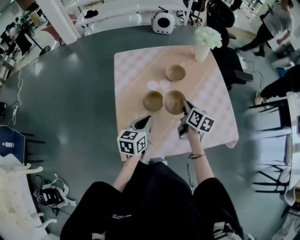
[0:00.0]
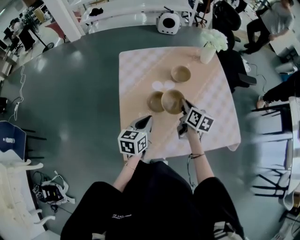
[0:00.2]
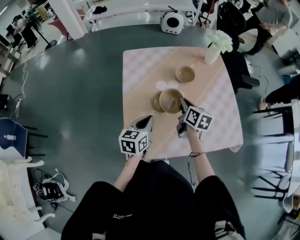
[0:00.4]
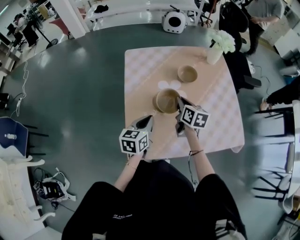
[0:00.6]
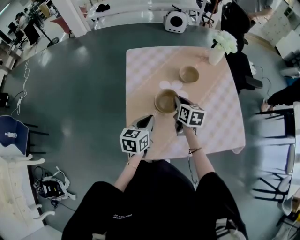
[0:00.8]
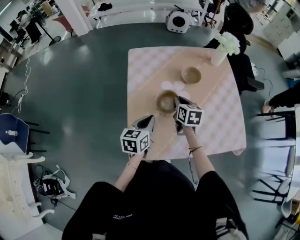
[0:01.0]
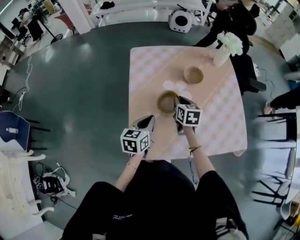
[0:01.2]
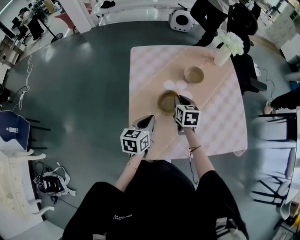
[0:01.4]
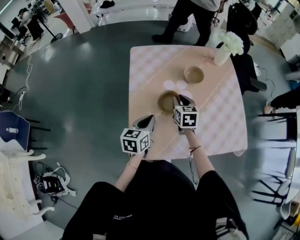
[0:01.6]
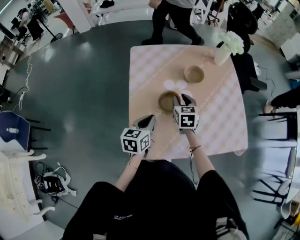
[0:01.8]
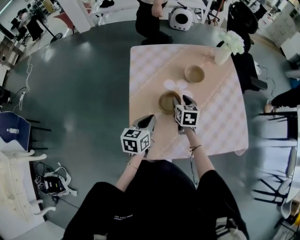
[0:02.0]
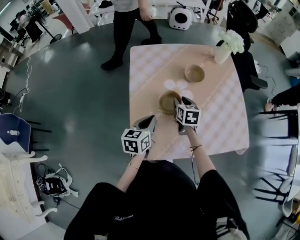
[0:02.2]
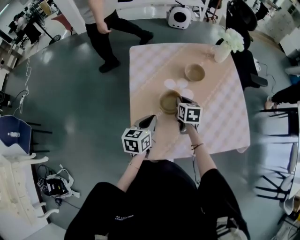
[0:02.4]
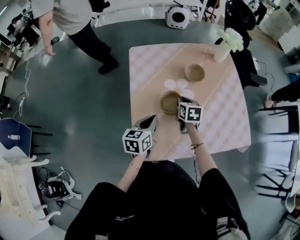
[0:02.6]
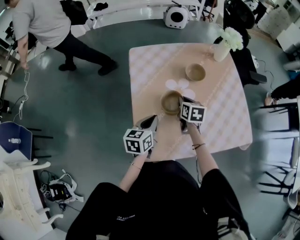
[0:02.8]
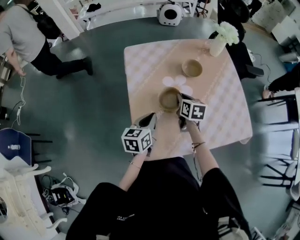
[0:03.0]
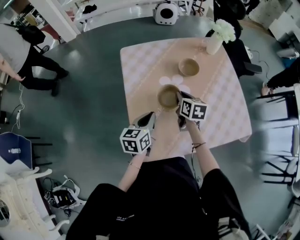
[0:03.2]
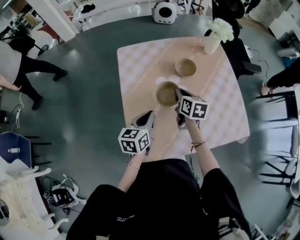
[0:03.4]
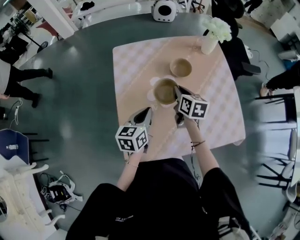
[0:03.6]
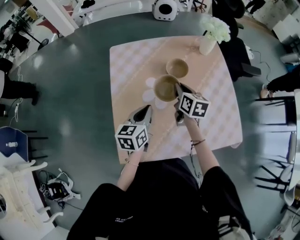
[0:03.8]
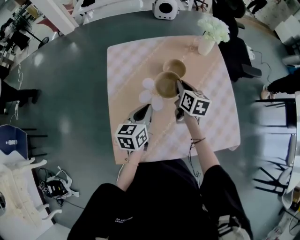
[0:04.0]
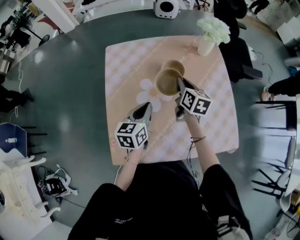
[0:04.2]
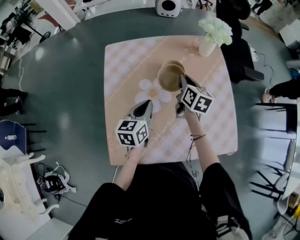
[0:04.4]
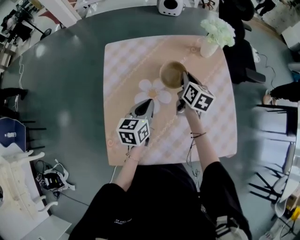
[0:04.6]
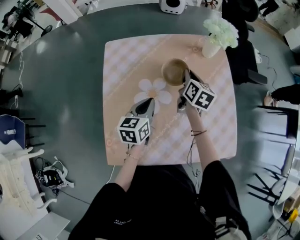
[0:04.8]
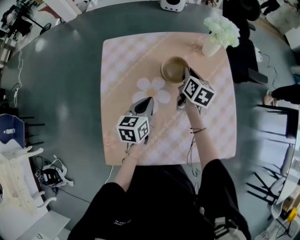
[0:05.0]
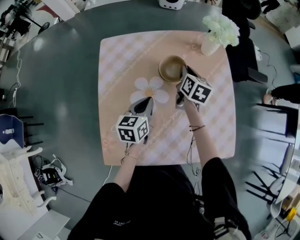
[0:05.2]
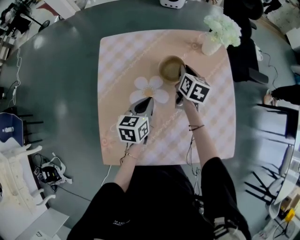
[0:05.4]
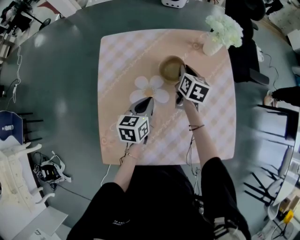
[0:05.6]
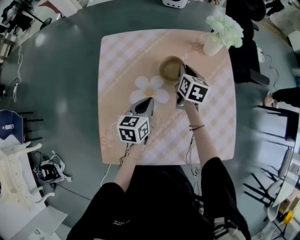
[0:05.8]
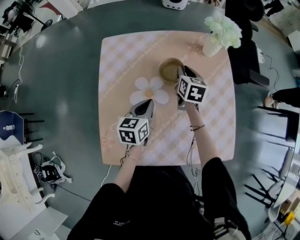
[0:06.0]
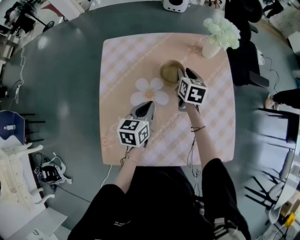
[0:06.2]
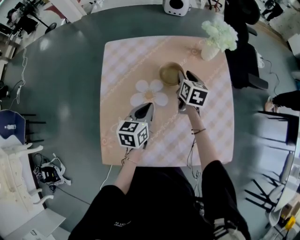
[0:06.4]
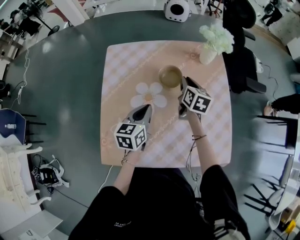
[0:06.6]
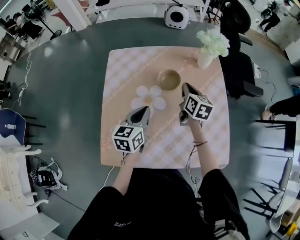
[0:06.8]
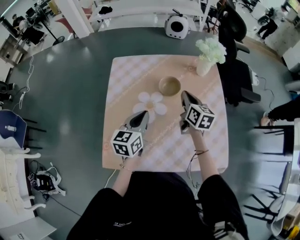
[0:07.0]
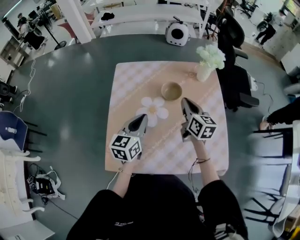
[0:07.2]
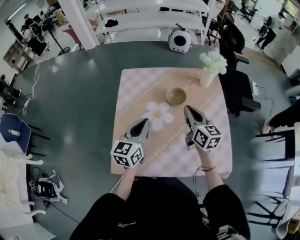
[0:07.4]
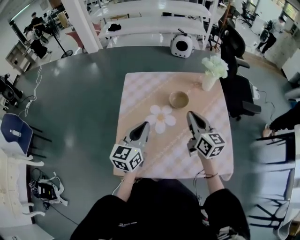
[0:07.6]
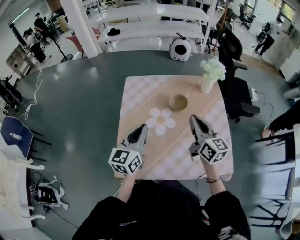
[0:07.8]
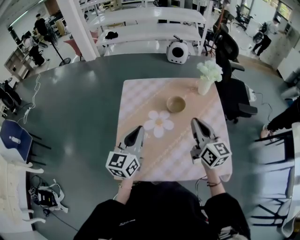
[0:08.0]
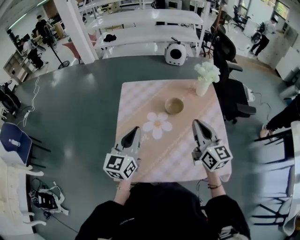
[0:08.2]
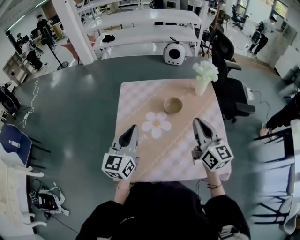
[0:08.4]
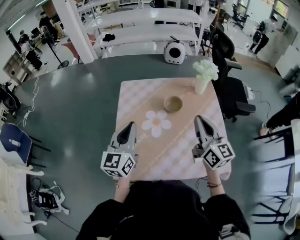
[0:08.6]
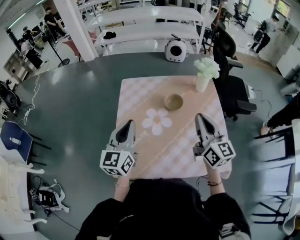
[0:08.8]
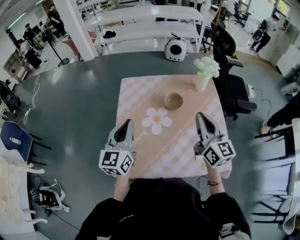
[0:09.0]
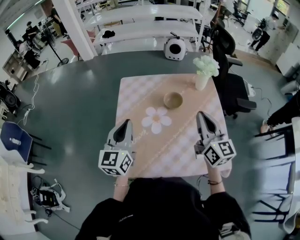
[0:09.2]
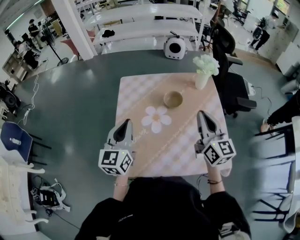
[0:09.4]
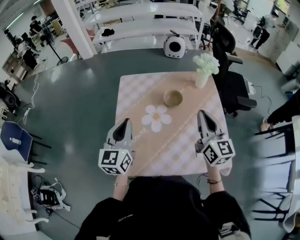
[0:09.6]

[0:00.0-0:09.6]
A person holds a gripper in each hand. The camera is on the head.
0:00.0 to 0:01.6: The left gripper travels to the left by about 5 cm. The right gripper goes about 15 cm to the left and downward, and rotates roughly 30 degrees.
0:01.6 to 0:03.2: The right gripper opens, then closes once more.
0:03.2 to 0:04.8: The two grippers go approximately 20 cm forward and to the right.
0:04.8 to 0:06.4: The right gripper opens.
0:06.4 to 0:08.0: The right gripper heads upward and backward, covering some 30 cm, points its fingers approximately 30 degrees further upward, and closes its fingers. The left gripper shifts approximately 20 cm upward, to the left and backward, and changes its angle by some 30 degrees.
0:08.0 to 0:09.6: There are only small adjustments of the grippers.

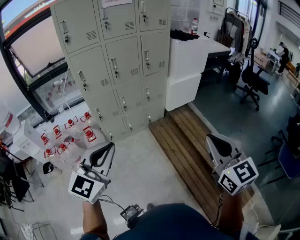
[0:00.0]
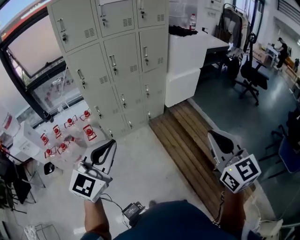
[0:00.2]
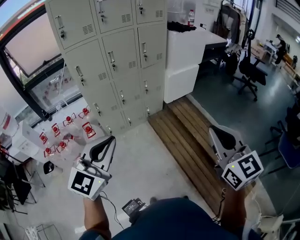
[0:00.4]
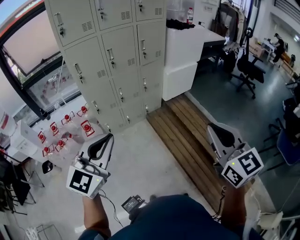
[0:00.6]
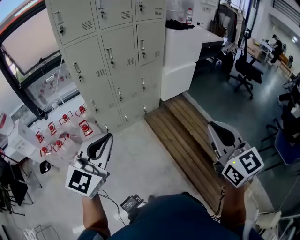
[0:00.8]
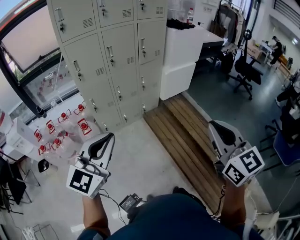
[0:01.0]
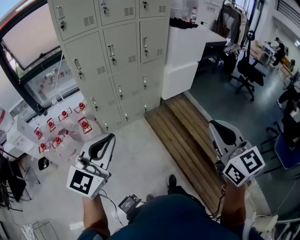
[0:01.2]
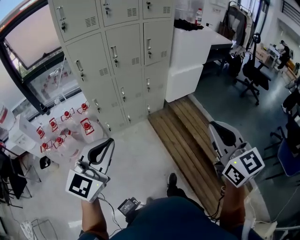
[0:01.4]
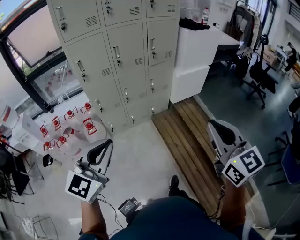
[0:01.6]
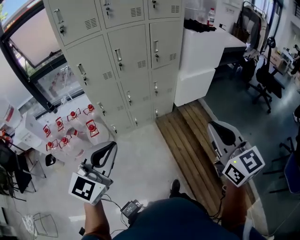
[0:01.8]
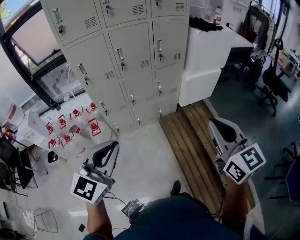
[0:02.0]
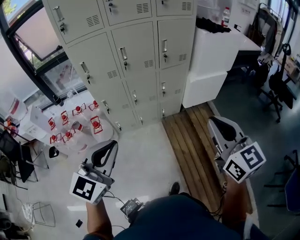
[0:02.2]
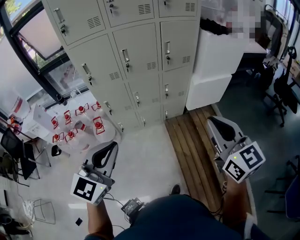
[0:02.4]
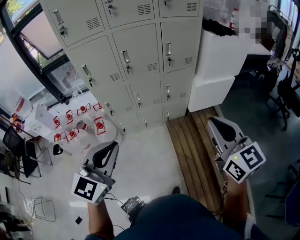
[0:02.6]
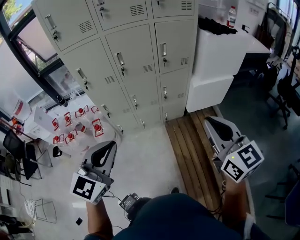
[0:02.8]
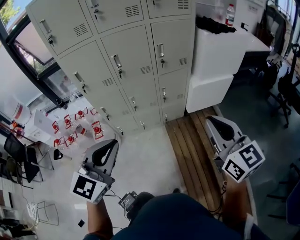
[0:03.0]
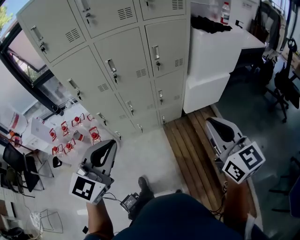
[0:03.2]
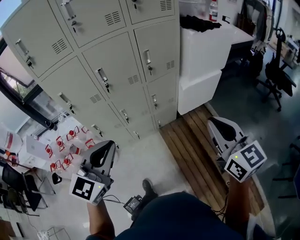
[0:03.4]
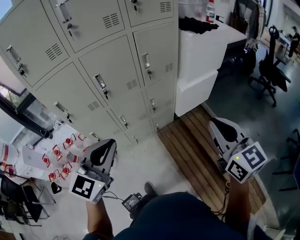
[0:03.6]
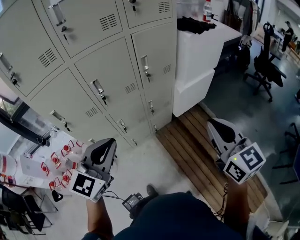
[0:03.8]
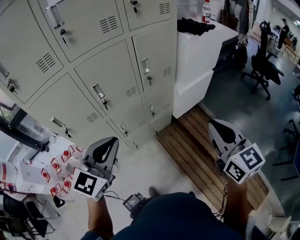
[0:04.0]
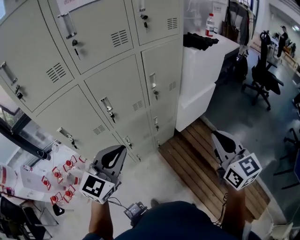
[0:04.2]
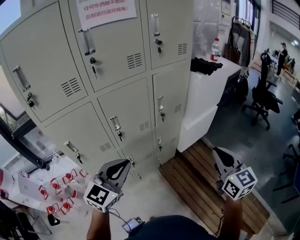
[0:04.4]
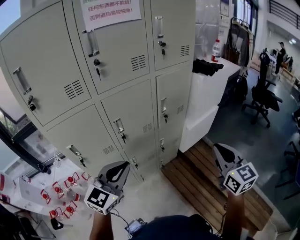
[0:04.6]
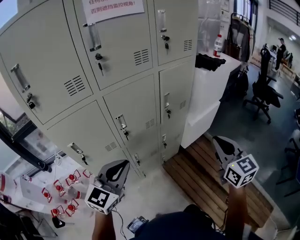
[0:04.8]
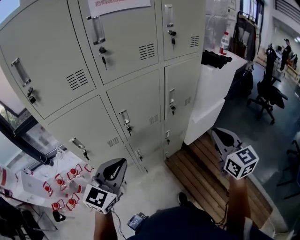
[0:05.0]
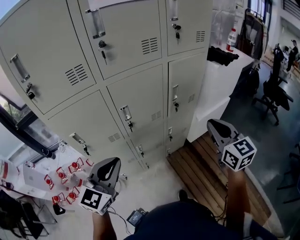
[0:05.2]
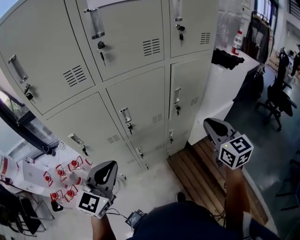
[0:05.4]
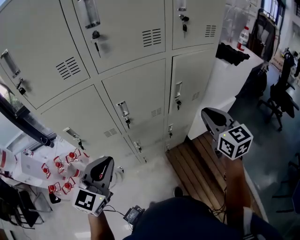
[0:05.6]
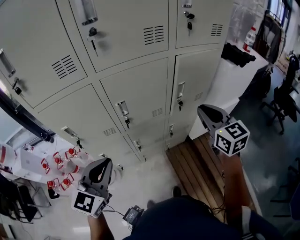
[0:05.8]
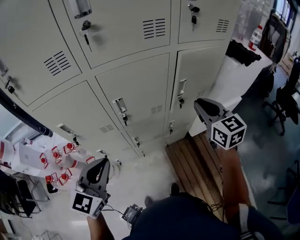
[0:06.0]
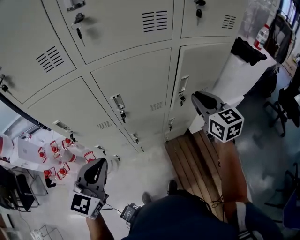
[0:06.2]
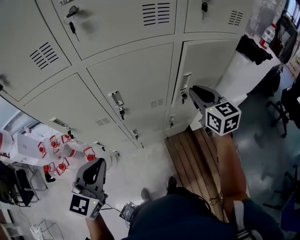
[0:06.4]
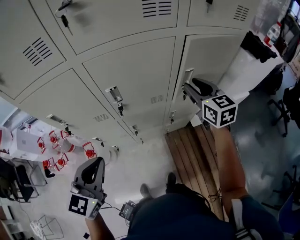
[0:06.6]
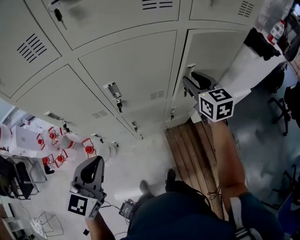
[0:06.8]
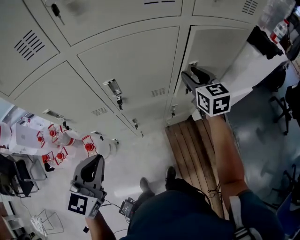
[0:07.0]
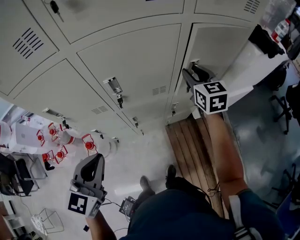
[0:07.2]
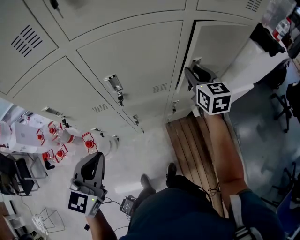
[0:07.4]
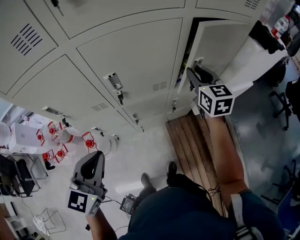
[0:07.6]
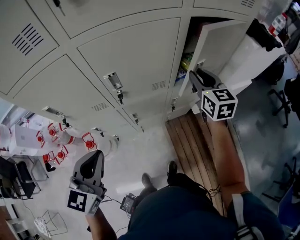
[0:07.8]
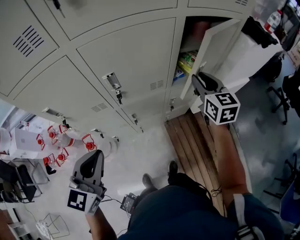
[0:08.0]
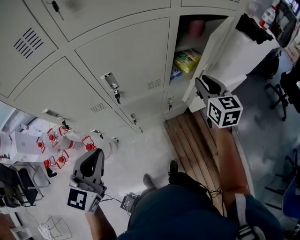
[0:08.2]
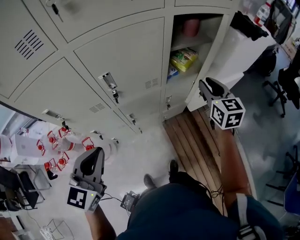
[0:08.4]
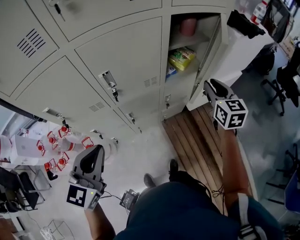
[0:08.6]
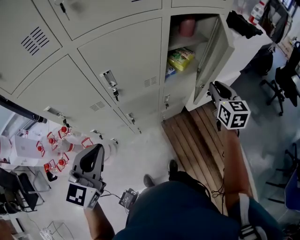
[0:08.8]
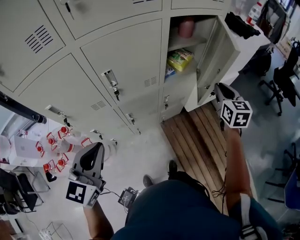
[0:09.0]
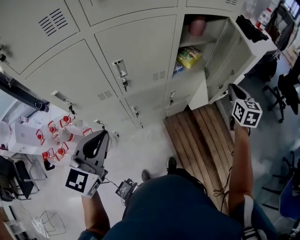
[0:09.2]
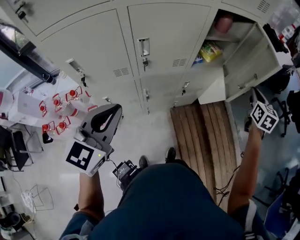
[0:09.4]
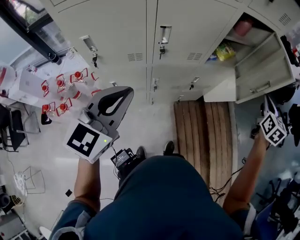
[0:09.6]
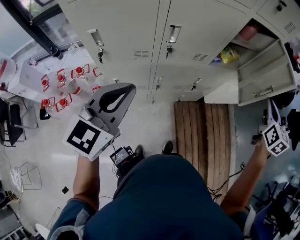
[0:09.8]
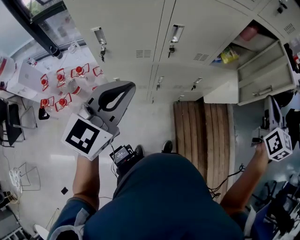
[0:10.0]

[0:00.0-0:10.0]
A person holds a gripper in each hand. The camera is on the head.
0:00.0 to 0:01.4: The right gripper moves about 5 cm.
0:01.4 to 0:02.8: The right gripper is displaced forward by about 30 cm. Meanwhile the left gripper goes some 25 cm forward and to the right.
0:02.8 to 0:04.2: The left gripper ends up approximately 30 cm from where it was, and swivels some 20 degrees; the right gripper moves some 15 cm, and swivels approximately 30 degrees.
0:04.2 to 0:05.8: The right gripper moves forward and to the left, about 30 cm. Meanwhile the left gripper goes some 10 cm to the left, and swivels some 20 degrees.
0:05.8 to 0:07.2: The right gripper is displaced forward and downward by roughly 20 cm, and opens its fingers, while the left gripper is displaced downward by some 5 cm.
0:07.2 to 0:08.6: The right gripper moves backward and to the right, about 15 cm.
0:08.6 to 0:10.0: The left gripper heads to the left and backward, covering about 10 cm, while the right gripper moves backward and upward, about 15 cm.

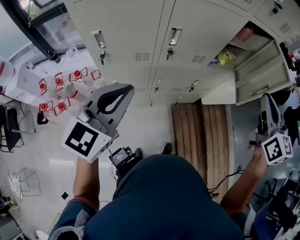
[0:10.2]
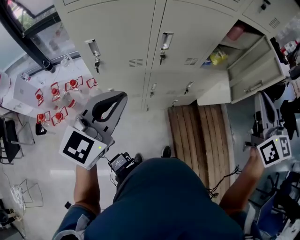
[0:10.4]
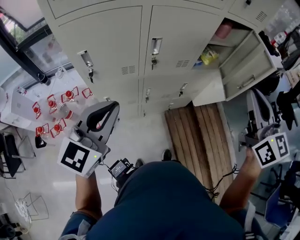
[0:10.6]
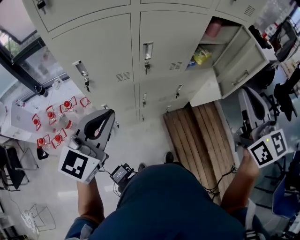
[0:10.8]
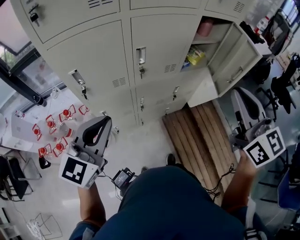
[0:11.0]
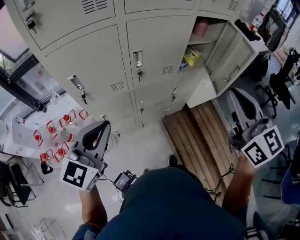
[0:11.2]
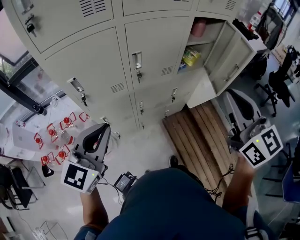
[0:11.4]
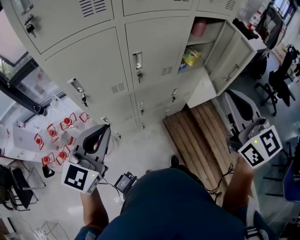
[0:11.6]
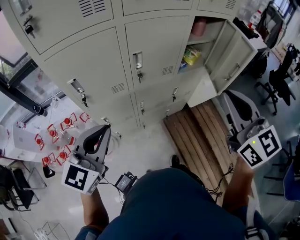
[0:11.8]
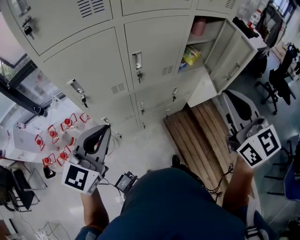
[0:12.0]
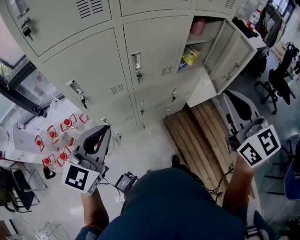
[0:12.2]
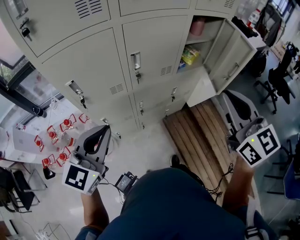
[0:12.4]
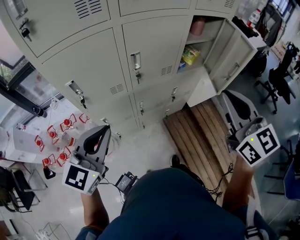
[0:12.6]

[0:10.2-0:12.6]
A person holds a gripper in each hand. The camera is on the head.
0:10.2 to 0:11.4: The right gripper moves backward and to the left, about 10 cm.
0:11.4 to 0:12.6: The grippers move only a little.

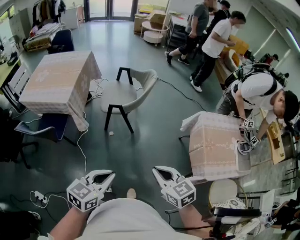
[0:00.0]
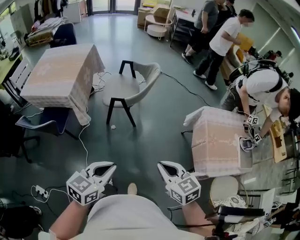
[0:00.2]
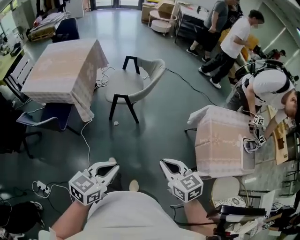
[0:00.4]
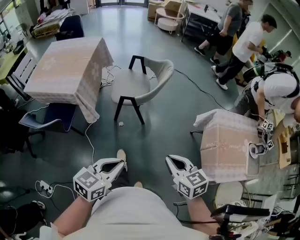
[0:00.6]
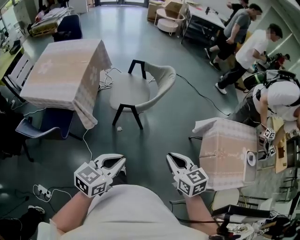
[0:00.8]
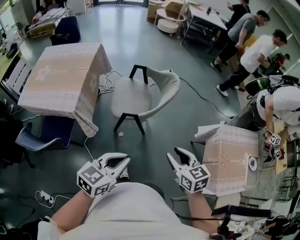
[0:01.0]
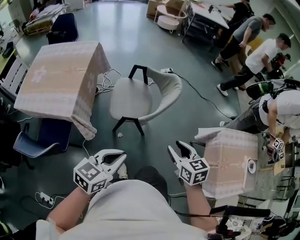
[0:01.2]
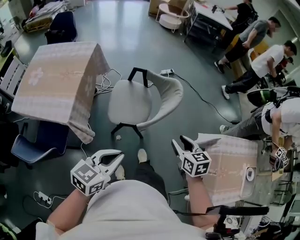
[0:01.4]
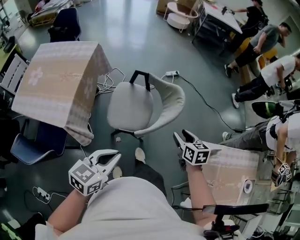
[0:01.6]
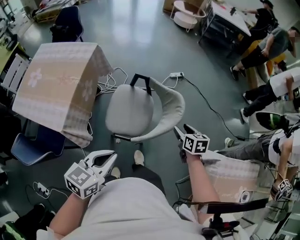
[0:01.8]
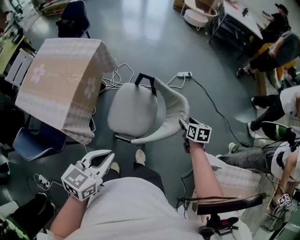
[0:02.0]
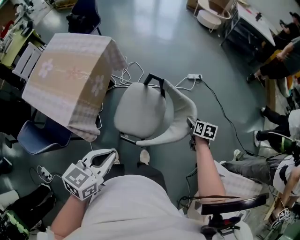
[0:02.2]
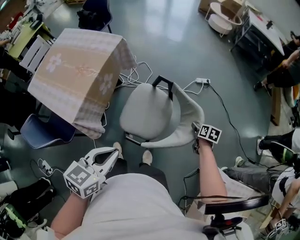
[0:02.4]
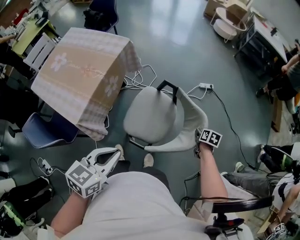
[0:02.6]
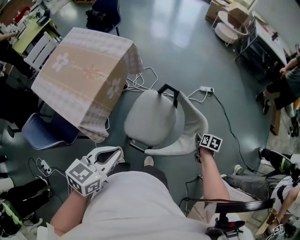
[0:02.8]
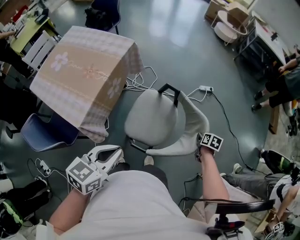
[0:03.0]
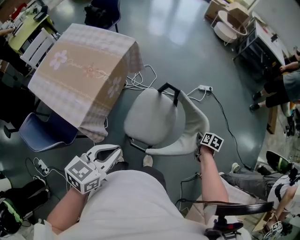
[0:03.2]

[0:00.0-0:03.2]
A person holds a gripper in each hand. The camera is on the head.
0:00.0 to 0:01.6: The two grippers travel together, forward, roughly 50 cm. The right gripper turns by approximately 20 degrees, and opens up.
0:01.6 to 0:03.2: The left gripper heads forward and to the left, covering roughly 15 cm. Meanwhile the right gripper shifts approximately 30 cm forward and downward, changes its angle by about 30 degrees, and closes up.
